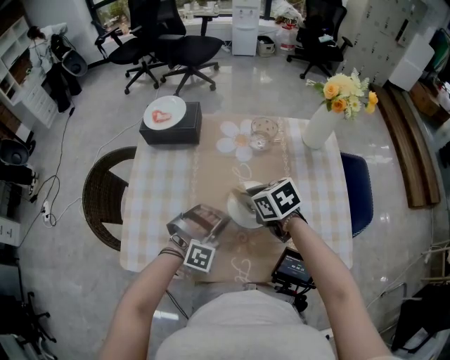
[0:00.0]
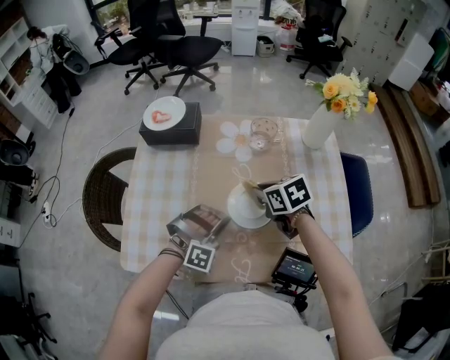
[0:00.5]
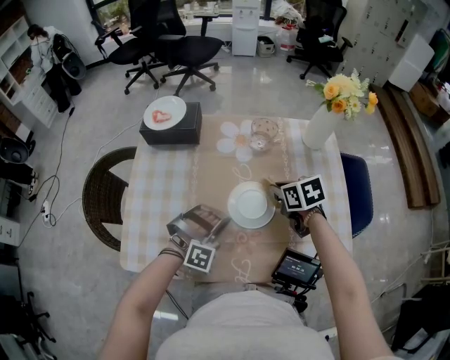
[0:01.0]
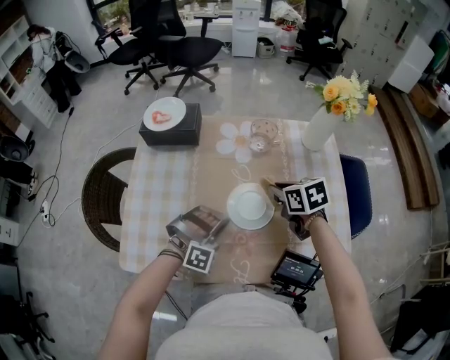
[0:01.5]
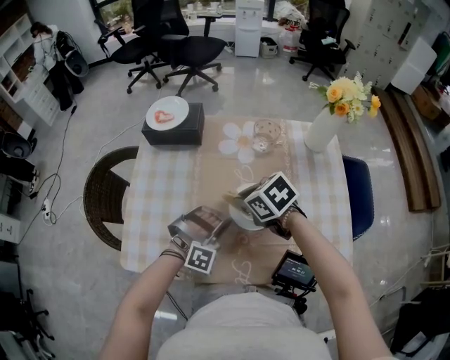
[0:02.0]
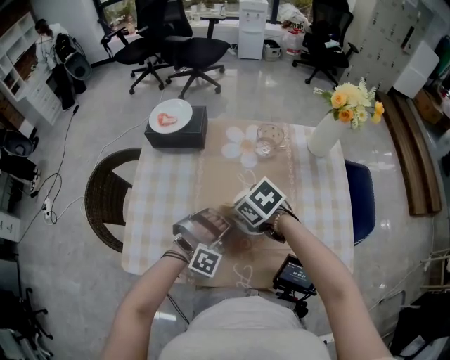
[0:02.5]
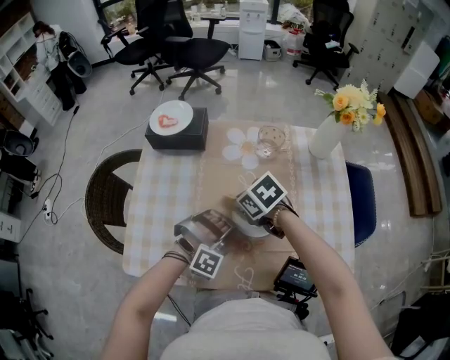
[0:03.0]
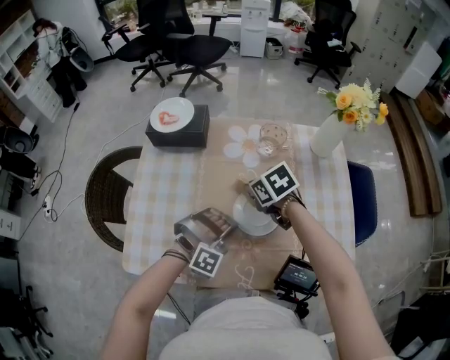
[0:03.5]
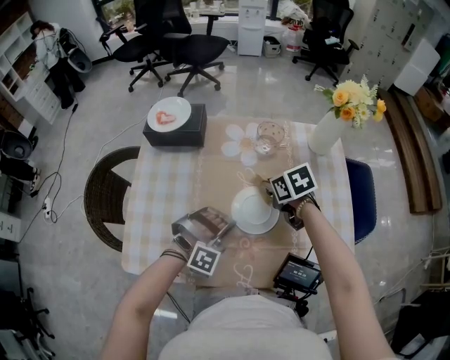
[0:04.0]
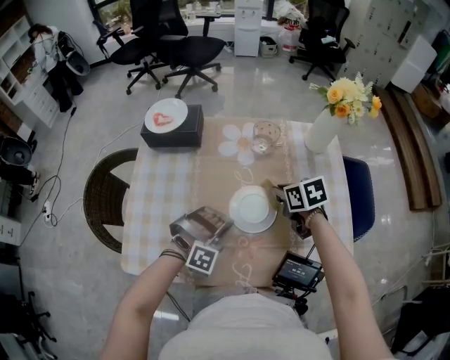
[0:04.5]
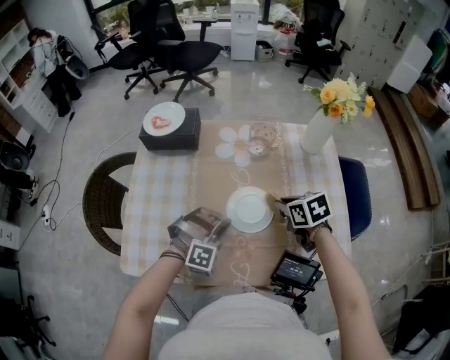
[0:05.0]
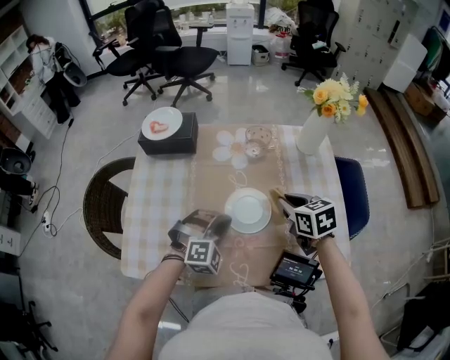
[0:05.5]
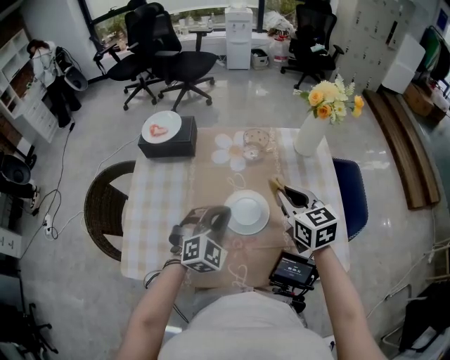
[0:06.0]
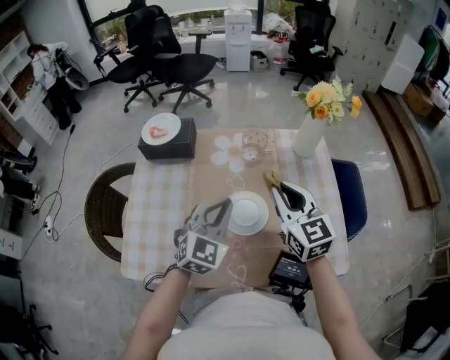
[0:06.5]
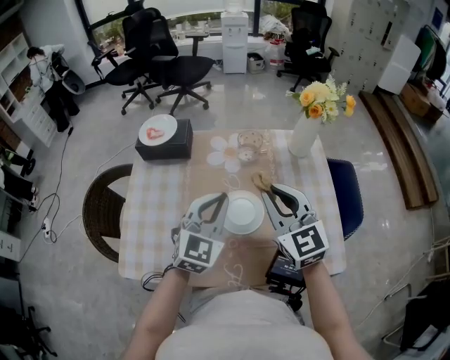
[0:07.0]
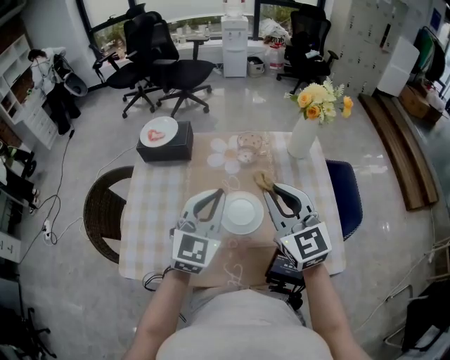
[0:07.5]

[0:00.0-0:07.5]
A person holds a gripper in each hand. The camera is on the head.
0:00.0 to 0:02.0: The right gripper reaches roughly 10 cm to the right, then returns.
0:02.0 to 0:04.0: The right gripper travels to the right by approximately 10 cm, and rotates some 20 degrees.
0:04.0 to 0:05.5: The right gripper is displaced backward and to the right by some 10 cm; the left gripper turns by roughly 20 degrees.
0:05.5 to 0:07.5: The two grippers go some 15 cm upward. The right gripper angles its fingers upward, by approximately 40 degrees, while the left gripper angles its fingers upward, by roughly 30 degrees.

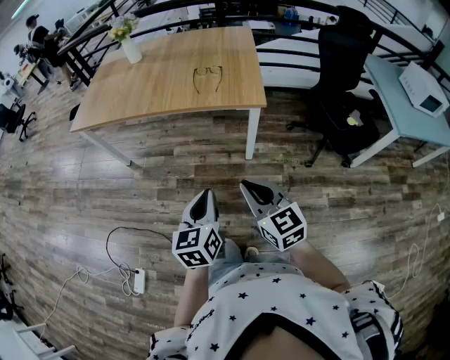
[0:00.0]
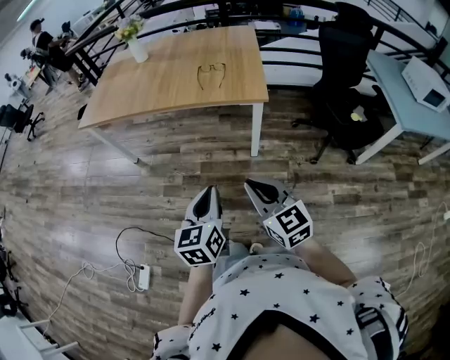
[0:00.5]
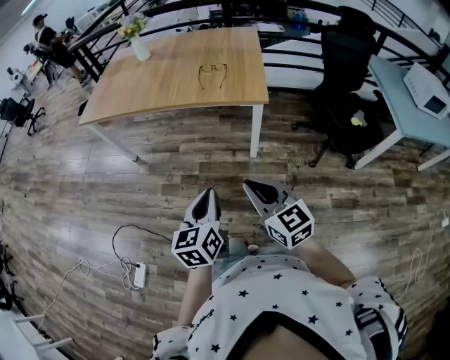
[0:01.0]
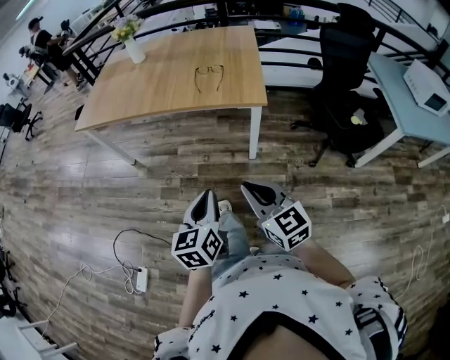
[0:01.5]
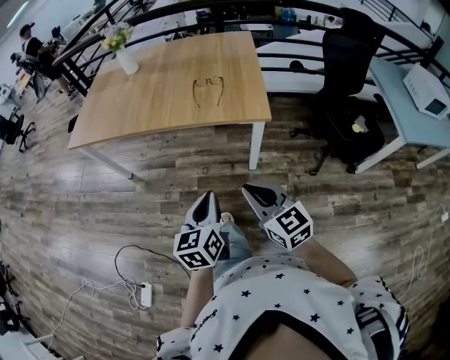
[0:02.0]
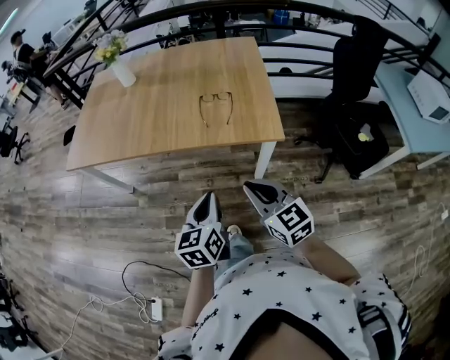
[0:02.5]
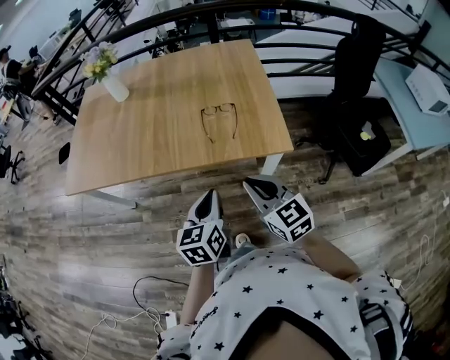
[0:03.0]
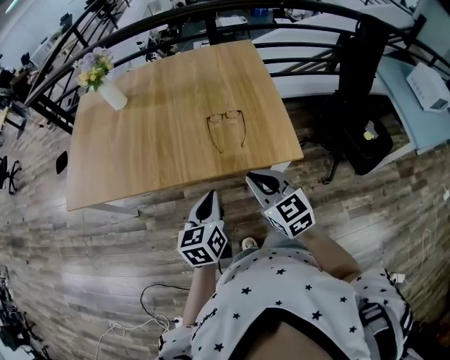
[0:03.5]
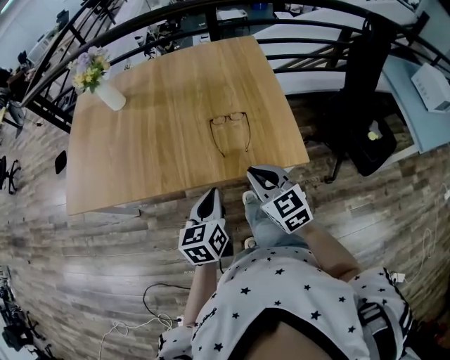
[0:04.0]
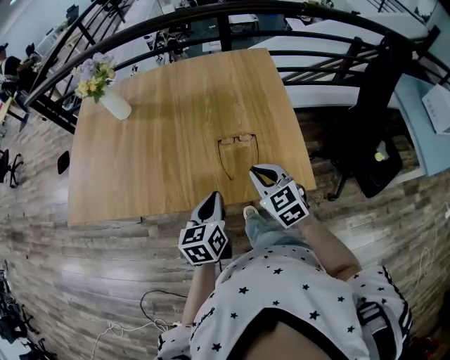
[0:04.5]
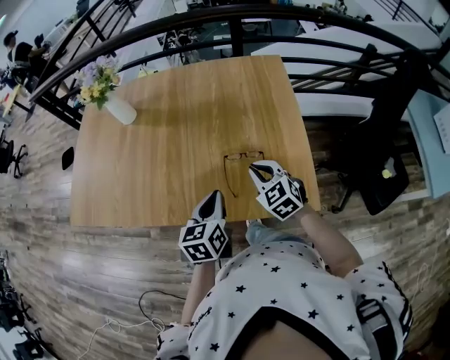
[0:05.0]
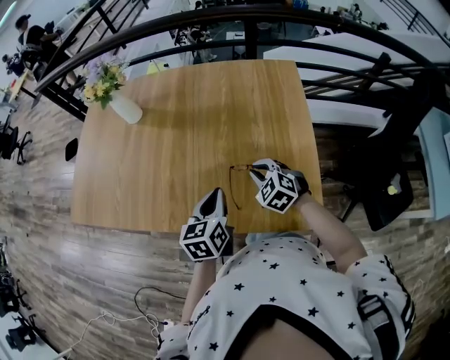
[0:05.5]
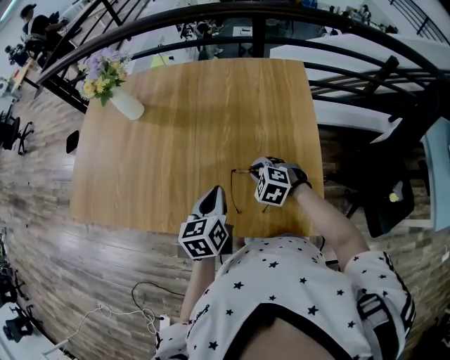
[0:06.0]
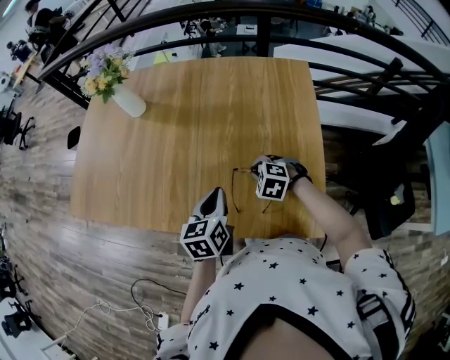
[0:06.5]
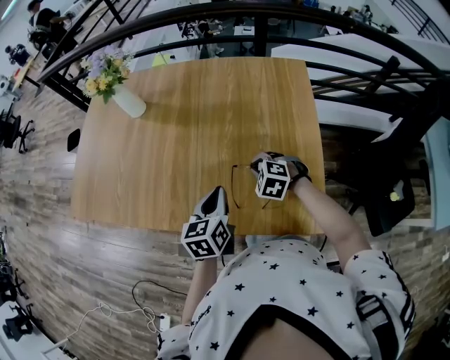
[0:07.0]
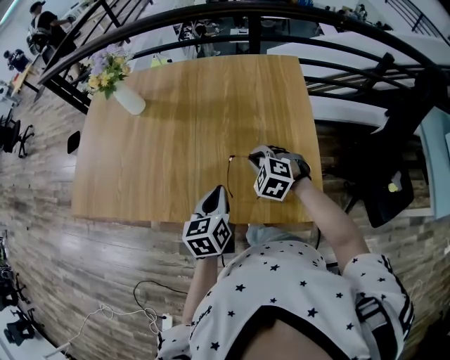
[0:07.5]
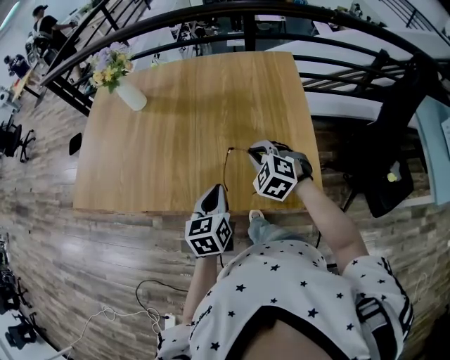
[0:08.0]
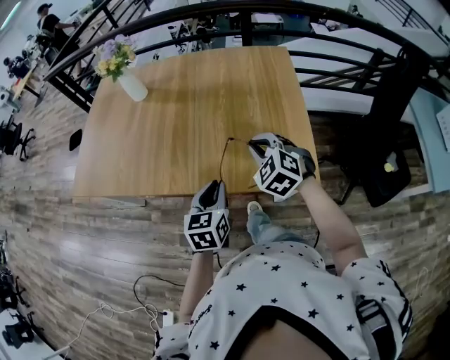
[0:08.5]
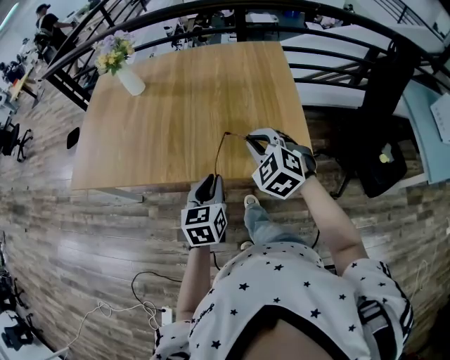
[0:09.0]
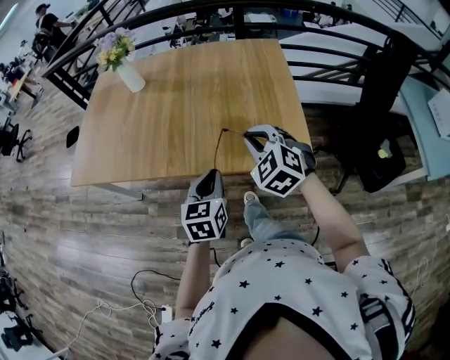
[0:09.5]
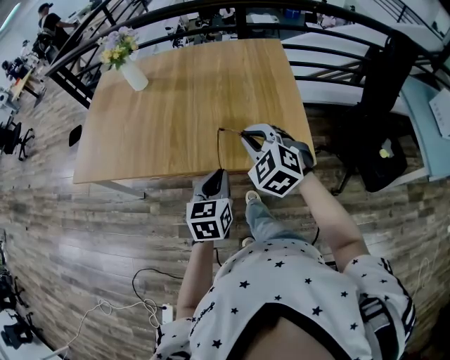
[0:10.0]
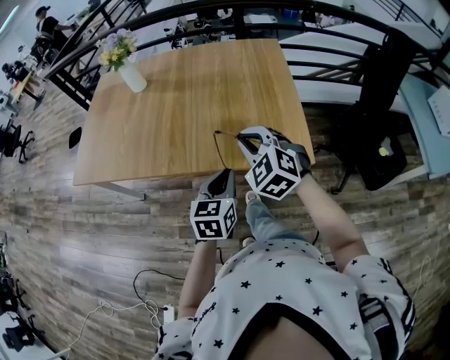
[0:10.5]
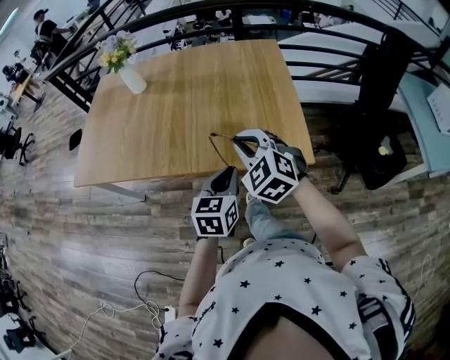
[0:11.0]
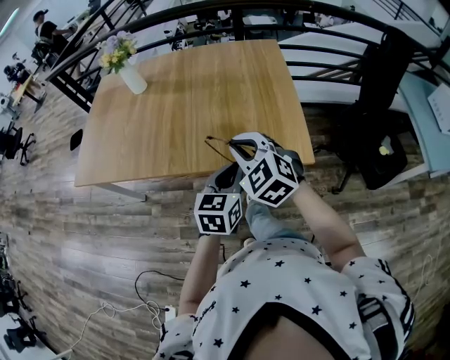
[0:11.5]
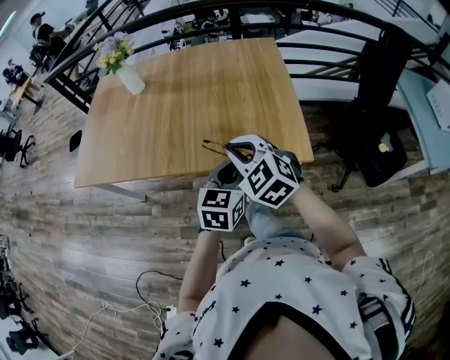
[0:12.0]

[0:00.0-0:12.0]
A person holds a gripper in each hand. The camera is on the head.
0:00.0 to 0:02.0: Both grippers travel together forward, about 10 cm.
0:02.0 to 0:04.0: The grippers both shift forward by roughly 35 cm.
0:04.0 to 0:06.0: The left gripper moves forward, roughly 20 cm, while the right gripper heads forward and downward, covering some 30 cm, and points its fingers approximately 40 degrees further downward.
0:06.0 to 0:08.0: The right gripper is displaced upward and backward by roughly 10 cm, while the left gripper is displaced backward by some 10 cm.
0:08.0 to 0:10.0: The left gripper travels backward by approximately 10 cm, while the right gripper moves backward and upward, some 15 cm.
0:10.0 to 0:12.0: The left gripper goes roughly 5 cm to the right.

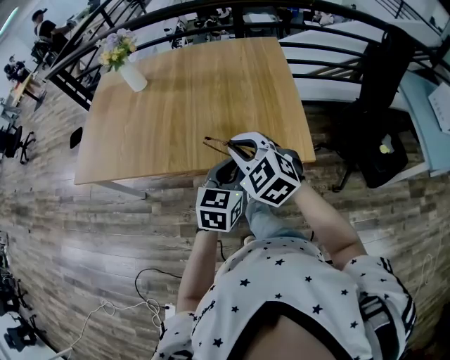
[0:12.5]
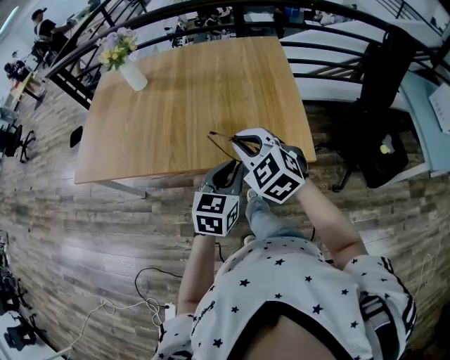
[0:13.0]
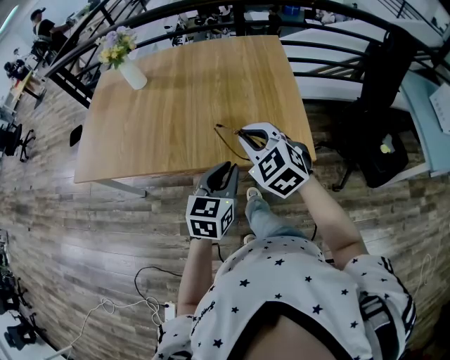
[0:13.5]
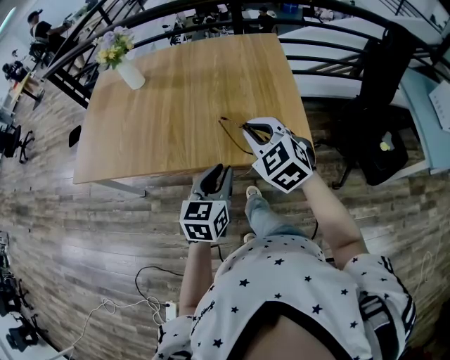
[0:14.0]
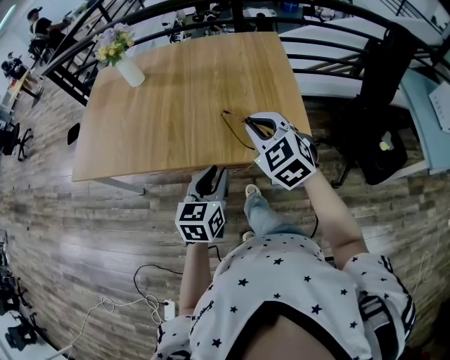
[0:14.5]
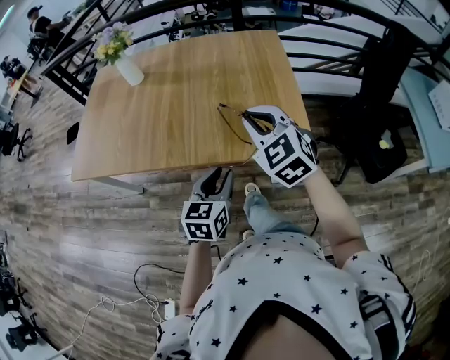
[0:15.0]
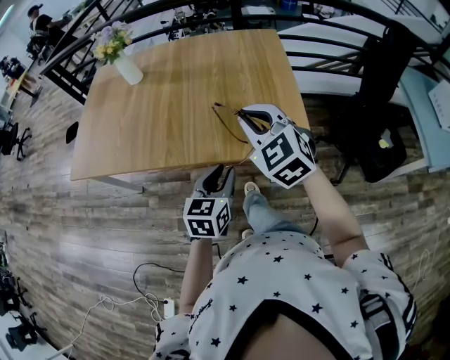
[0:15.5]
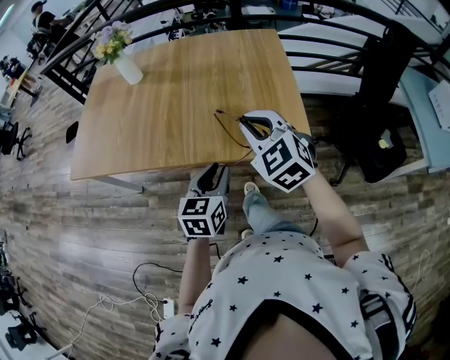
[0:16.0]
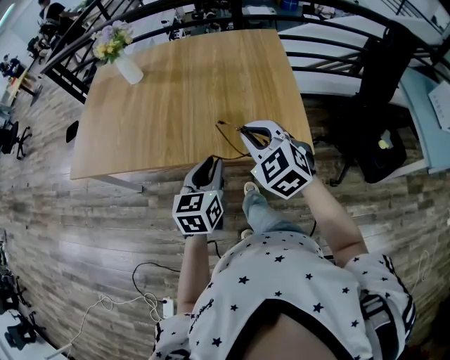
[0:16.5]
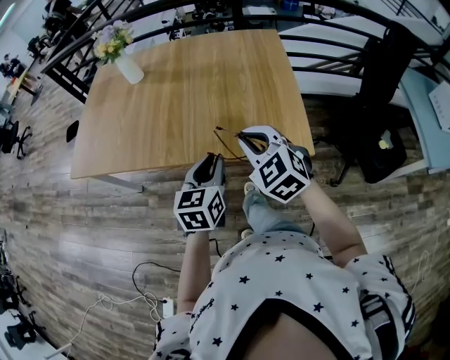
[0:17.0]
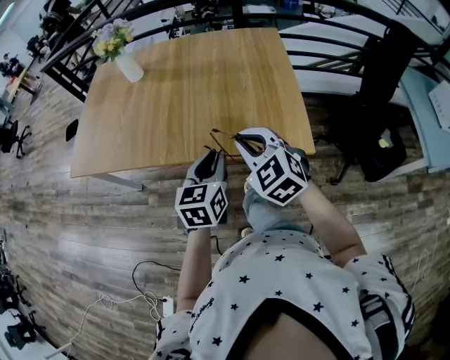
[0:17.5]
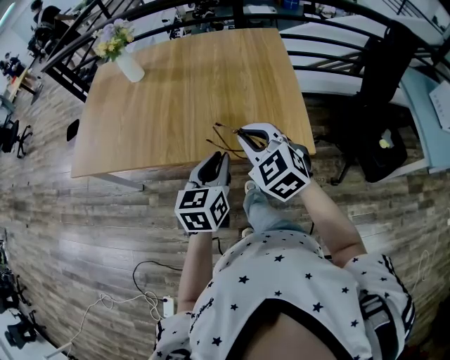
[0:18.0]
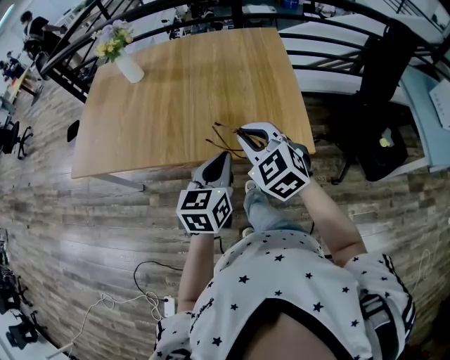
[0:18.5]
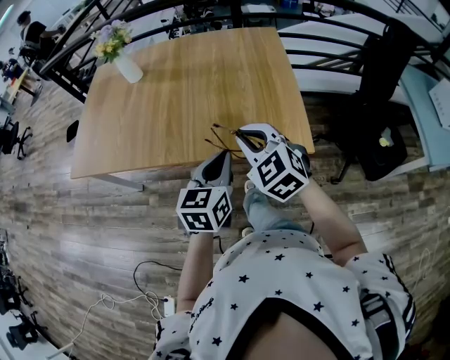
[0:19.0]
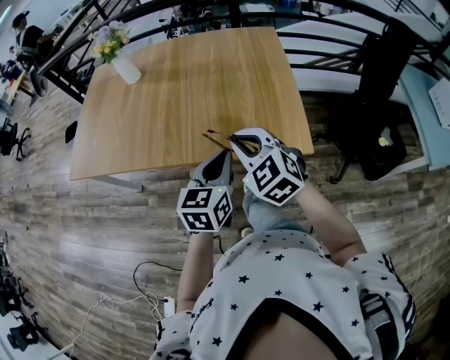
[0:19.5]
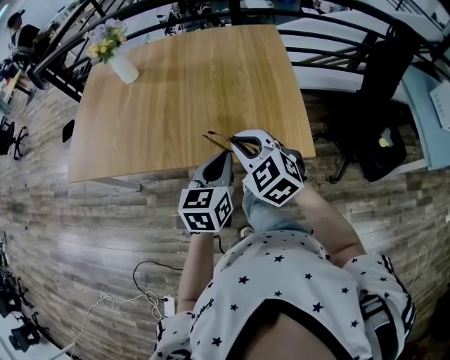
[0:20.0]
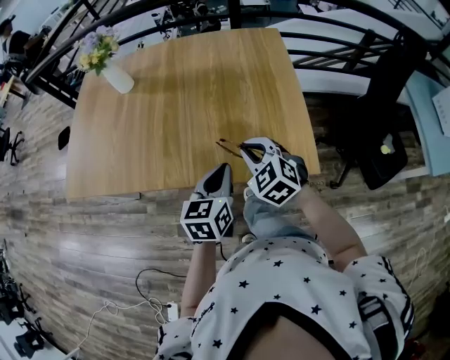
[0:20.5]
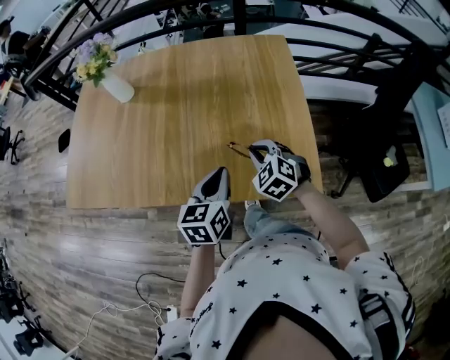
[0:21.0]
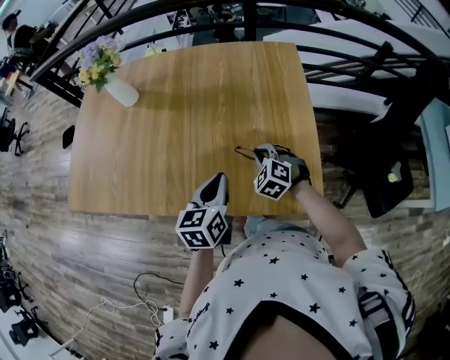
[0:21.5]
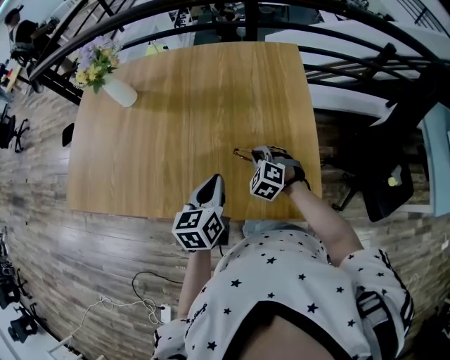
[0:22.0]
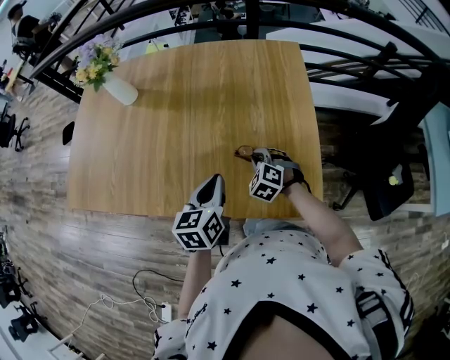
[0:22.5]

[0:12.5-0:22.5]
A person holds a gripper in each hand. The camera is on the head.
0:12.5 to 0:14.5: The right gripper is displaced to the right by about 5 cm, while the left gripper is displaced to the left by approximately 5 cm.
0:14.5 to 0:18.5: The grippers move only a little.
0:18.5 to 0:20.5: The right gripper shifts about 10 cm forward and downward. The left gripper shifts approximately 10 cm forward.
0:20.5 to 0:22.5: The right gripper is displaced downward and forward by about 20 cm, and turns by about 20 degrees. Meanwhile the left gripper travels forward by some 10 cm.
